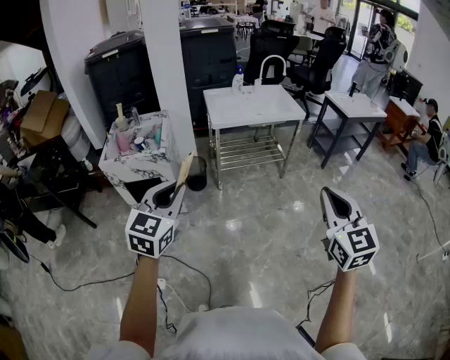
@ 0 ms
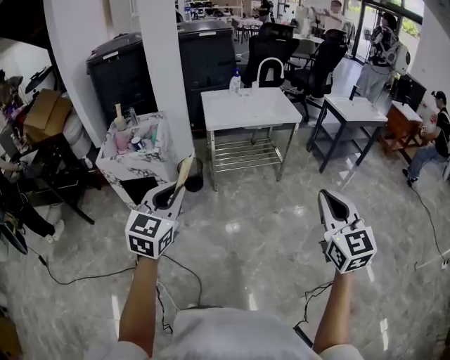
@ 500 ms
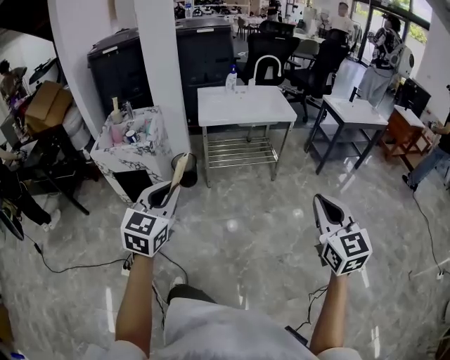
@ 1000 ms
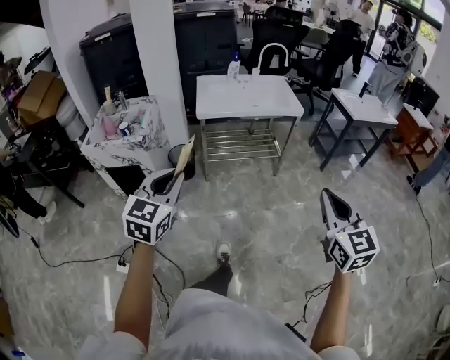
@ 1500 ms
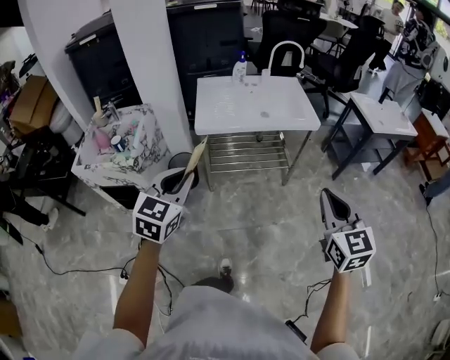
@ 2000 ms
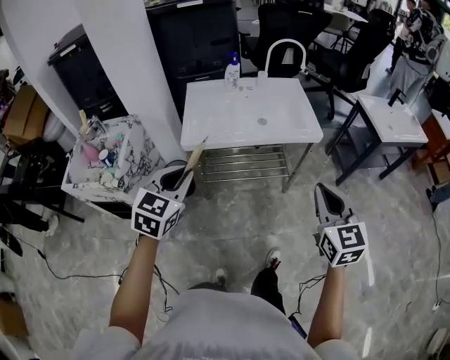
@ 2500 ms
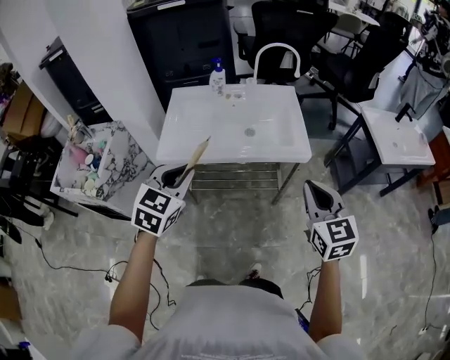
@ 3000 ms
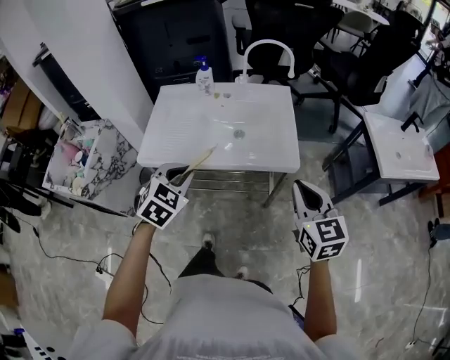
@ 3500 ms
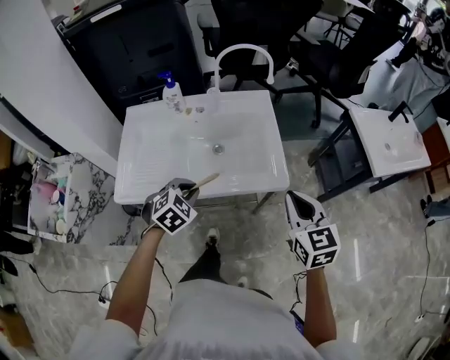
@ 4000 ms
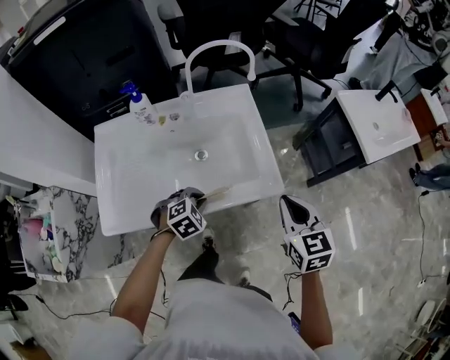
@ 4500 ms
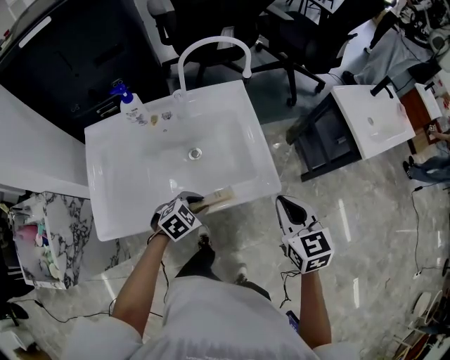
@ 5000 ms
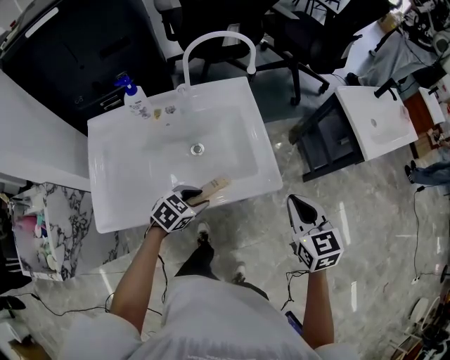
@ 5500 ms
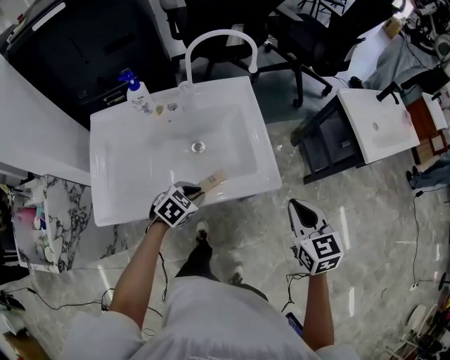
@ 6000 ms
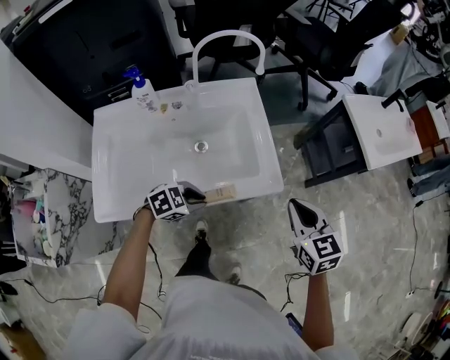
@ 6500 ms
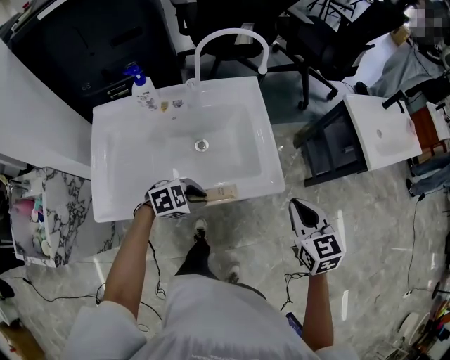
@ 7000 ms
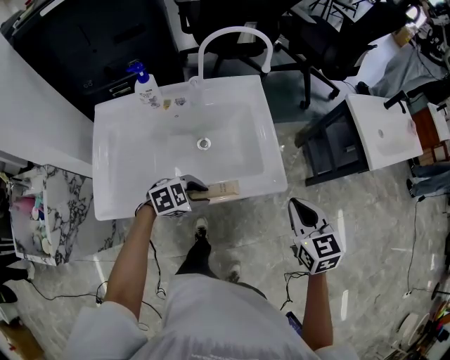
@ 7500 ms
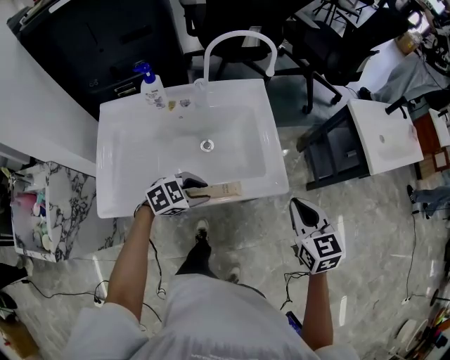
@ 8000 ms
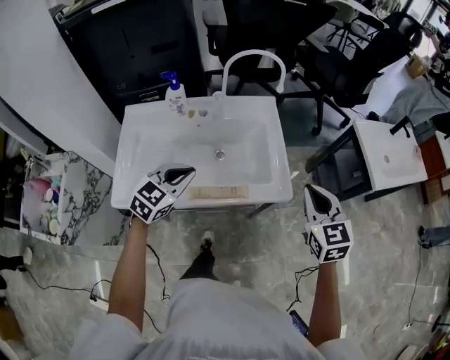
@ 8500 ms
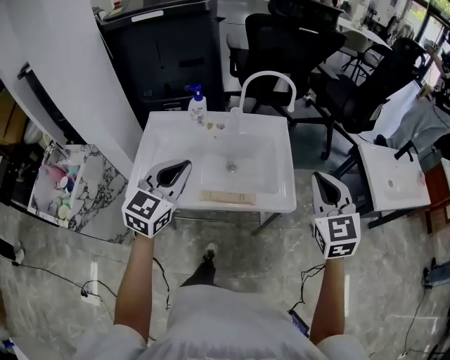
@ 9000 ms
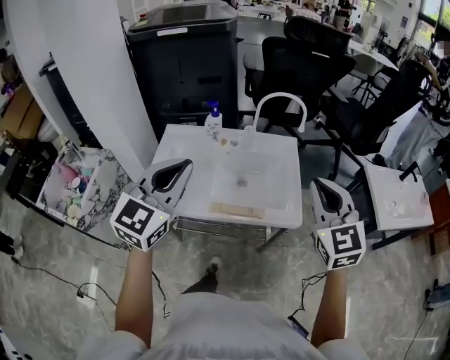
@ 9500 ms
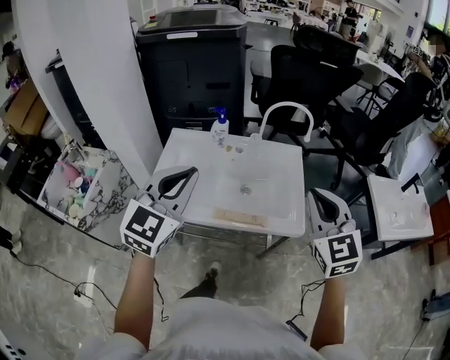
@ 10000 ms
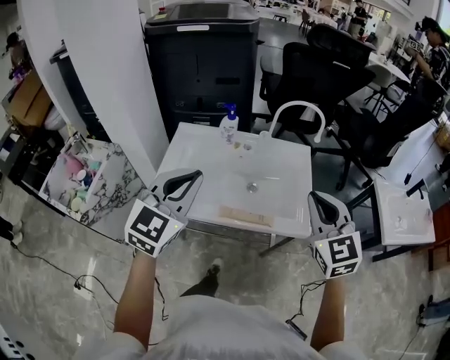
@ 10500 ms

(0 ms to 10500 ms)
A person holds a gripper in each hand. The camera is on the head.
0 ms - 2000 ms: The two grippers go some 35 cm forward and to the right.
2000 ms - 4000 ms: The pair of grippers is taken forward and to the right, about 50 cm. The left gripper goes approximately 20 cm downward, and tilts its fingers some 30 degrees downward.
4000 ms - 6500 ms: The left gripper heads downward, covering some 10 cm, turns by some 40 degrees, and opens and closes again. Meanwhile the right gripper changes place by roughly 5 cm.
6500 ms - 8500 ms: The left gripper travels upward by some 15 cm, and rotates approximately 40 degrees; the right gripper shifts some 5 cm upward.
8500 ms - 10500 ms: The right gripper travels upward and to the left by about 15 cm, and swivels approximately 20 degrees; the left gripper moves upward and backward, some 20 cm, and changes its angle by about 30 degrees.

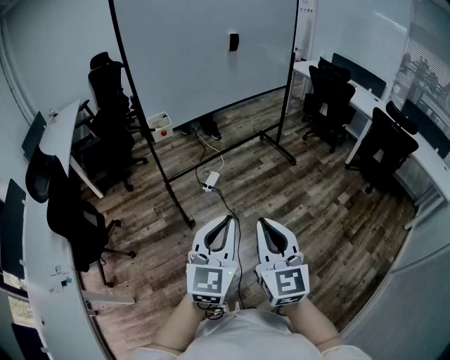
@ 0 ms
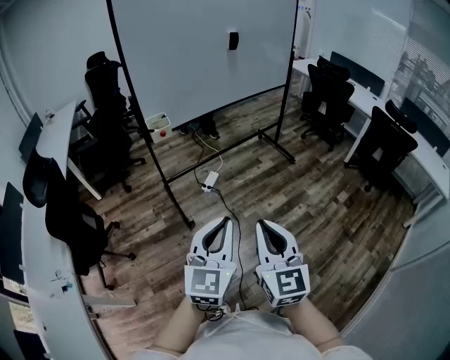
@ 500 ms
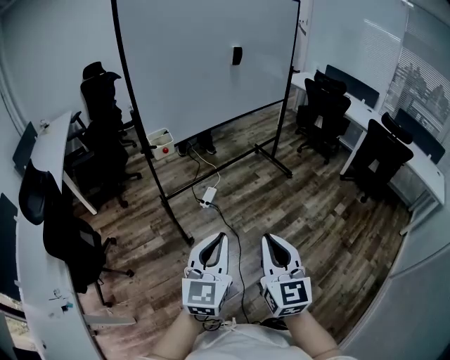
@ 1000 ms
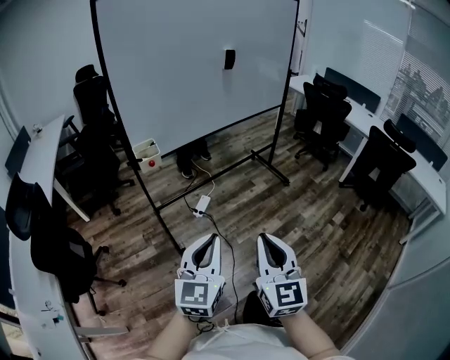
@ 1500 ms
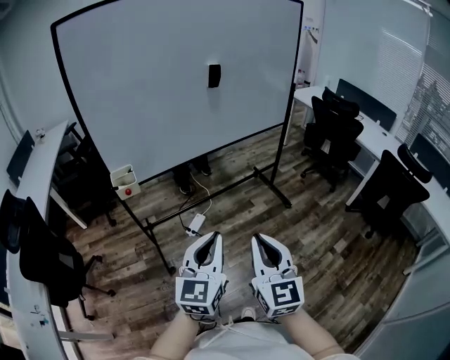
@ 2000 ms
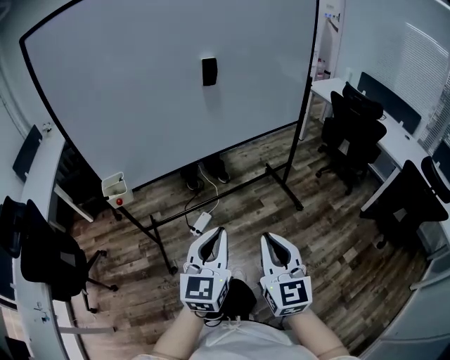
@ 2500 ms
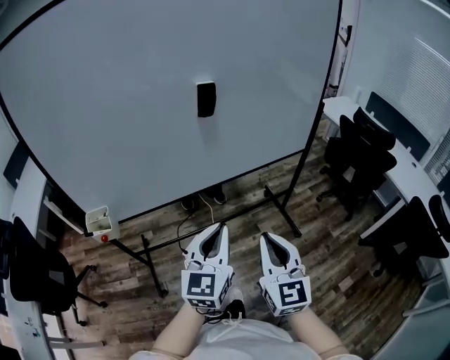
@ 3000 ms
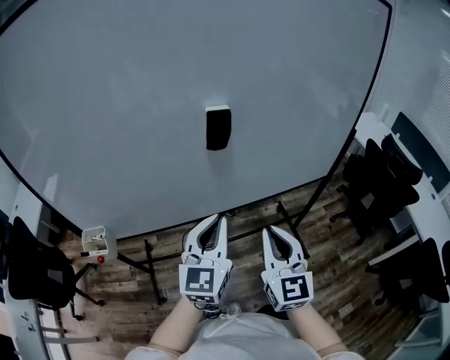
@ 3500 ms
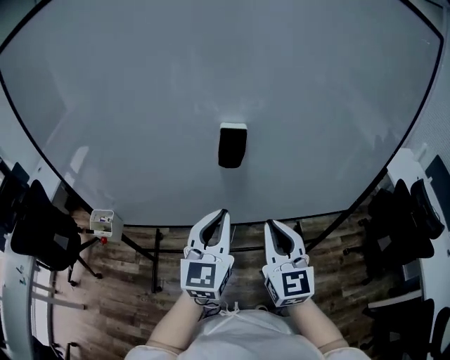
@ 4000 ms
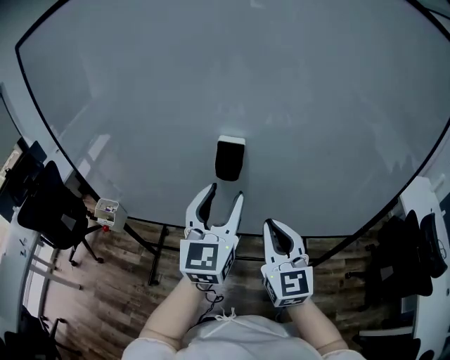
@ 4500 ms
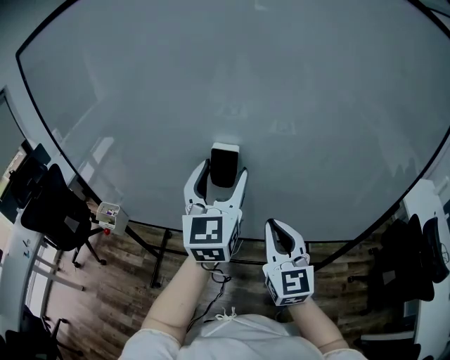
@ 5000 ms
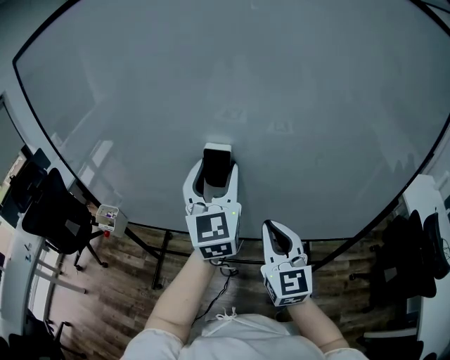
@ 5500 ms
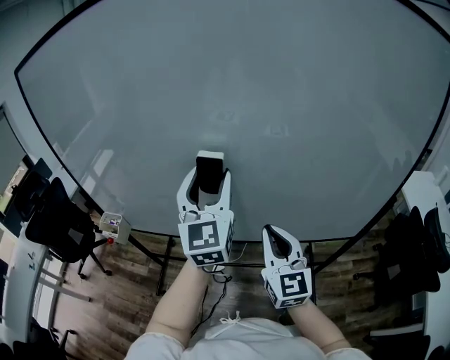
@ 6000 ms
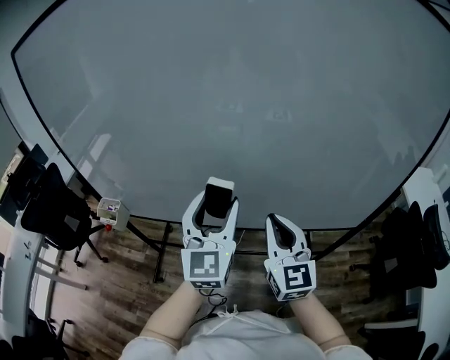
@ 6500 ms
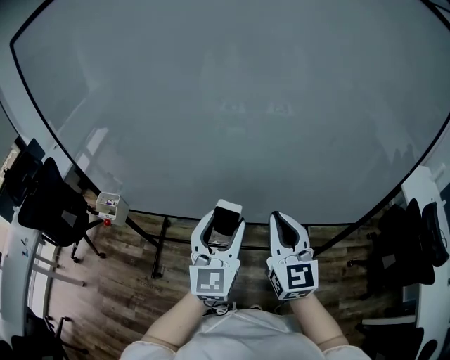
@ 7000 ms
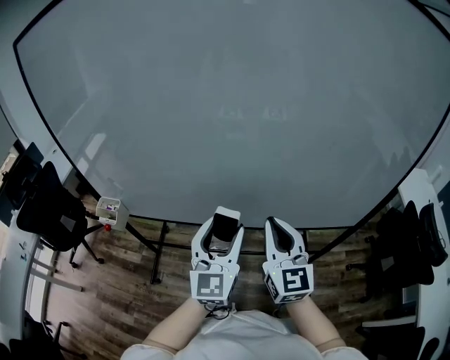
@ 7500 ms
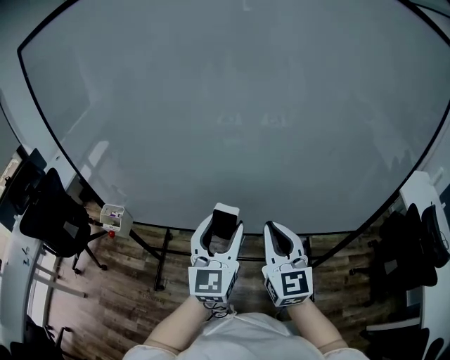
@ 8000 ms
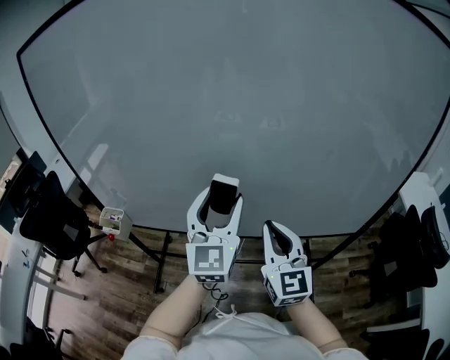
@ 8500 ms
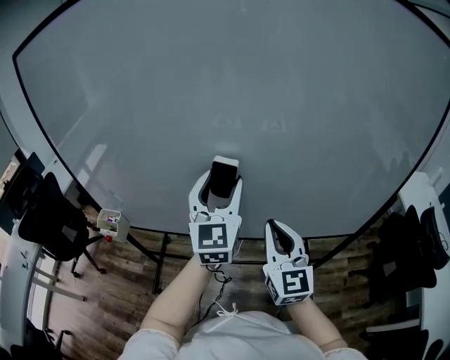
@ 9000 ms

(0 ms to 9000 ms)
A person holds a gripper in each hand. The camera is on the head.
0 ms - 2000 ms: The grippers both shift forward by some 30 cm.
2000 ms - 4500 ms: The two grippers travel together, some 60 cm. The right gripper rotates approximately 30 degrees. Meanwhile the left gripper rotates about 40 degrees, and opens its fingers.
4500 ms - 7000 ms: The left gripper goes about 10 cm downward and backward.
7000 ms - 9000 ms: The left gripper moves forward and upward, approximately 15 cm.

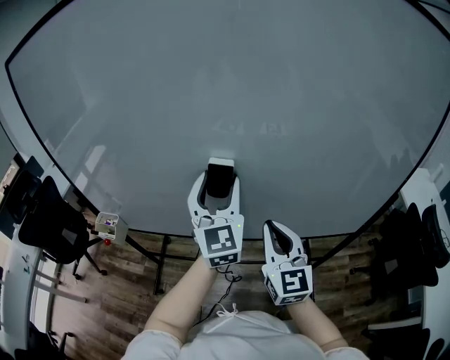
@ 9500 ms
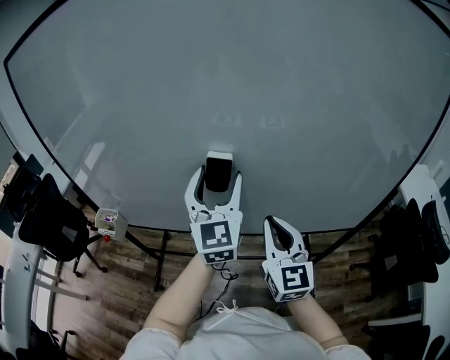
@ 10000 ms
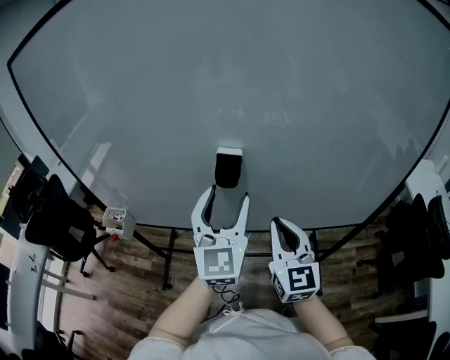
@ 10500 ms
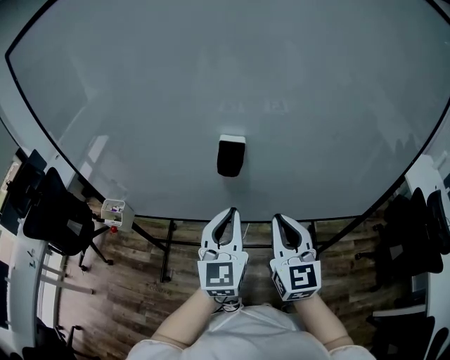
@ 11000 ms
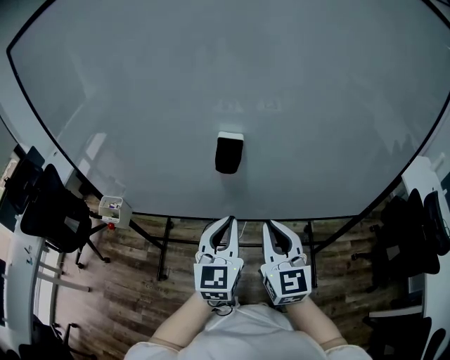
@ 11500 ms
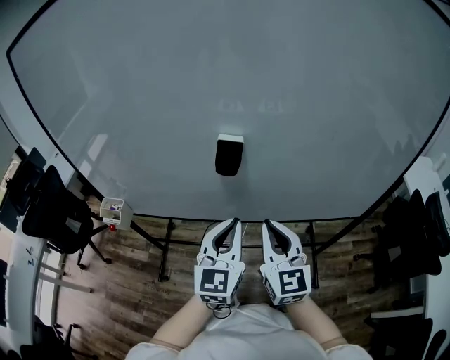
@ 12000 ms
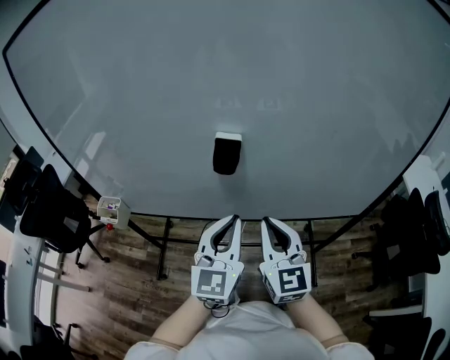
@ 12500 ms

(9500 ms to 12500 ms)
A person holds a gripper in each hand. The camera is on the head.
9500 ms - 11000 ms: The left gripper travels backward and downward by about 15 cm, and closes.
11000 ms - 12500 ms: There are only small adjustments of the grippers.

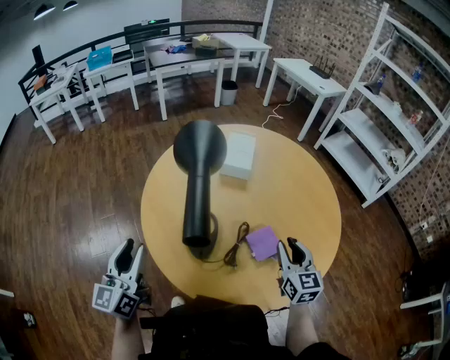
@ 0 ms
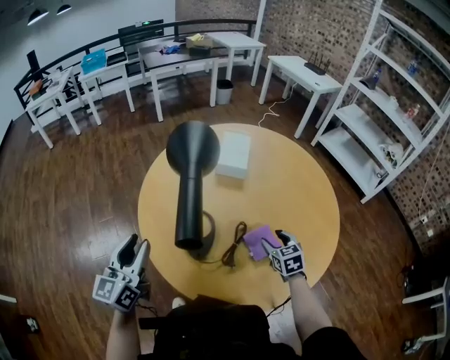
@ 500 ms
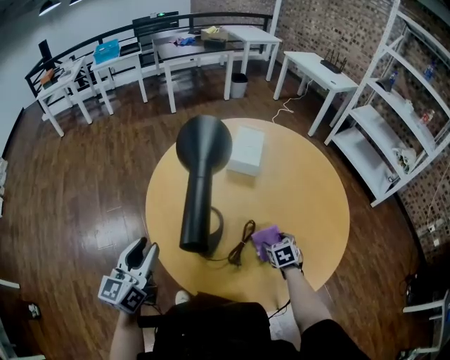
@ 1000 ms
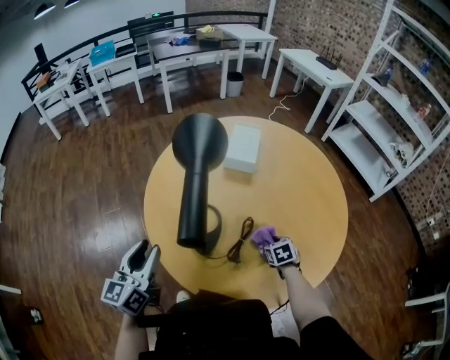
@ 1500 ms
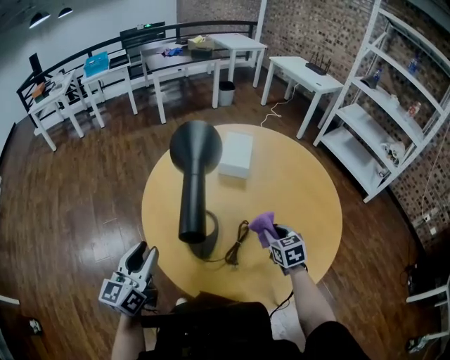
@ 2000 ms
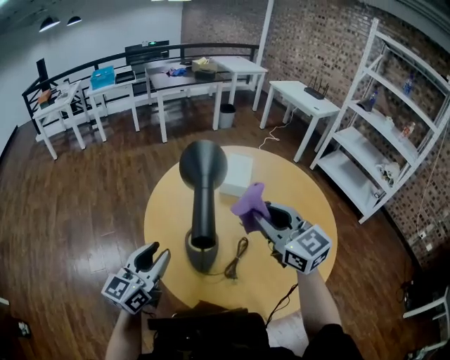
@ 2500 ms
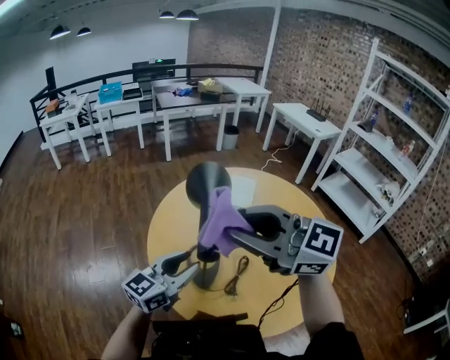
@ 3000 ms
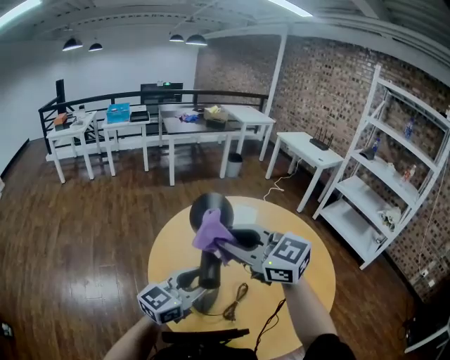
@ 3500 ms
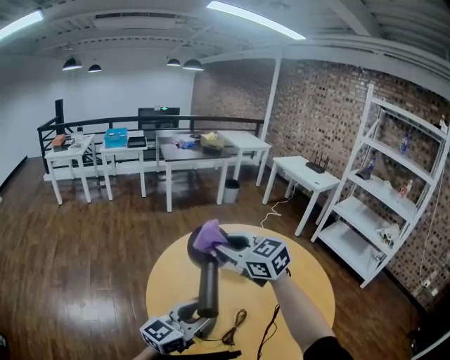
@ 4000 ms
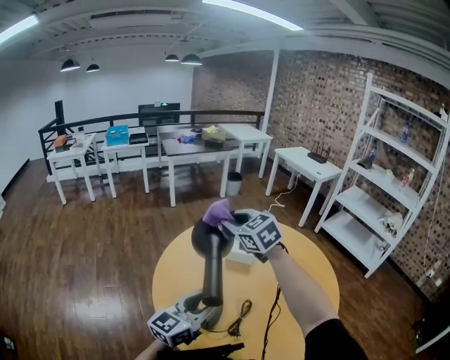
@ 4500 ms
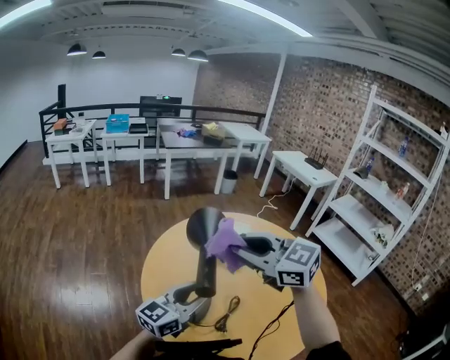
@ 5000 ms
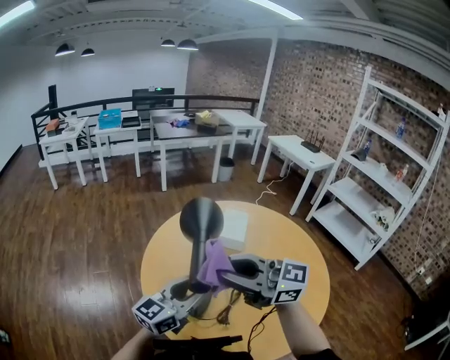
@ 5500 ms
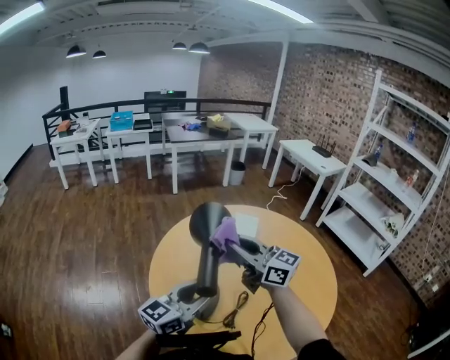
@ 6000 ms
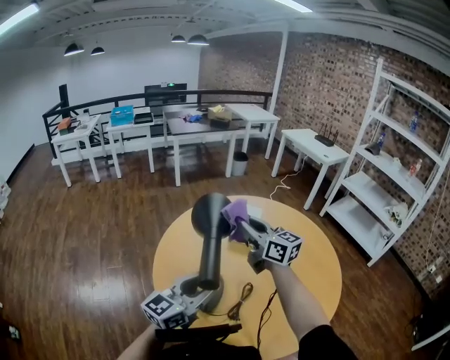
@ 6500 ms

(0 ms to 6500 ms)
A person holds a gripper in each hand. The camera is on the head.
0 ms - 2000 ms: The right gripper travels downward and forward by approximately 15 cm, swivels roughly 30 degrees, and opens, then closes again.
2000 ms - 4500 ms: The right gripper is displaced upward, forward and to the left by approximately 40 cm, and rotates approximately 40 degrees; the left gripper goes some 15 cm to the right, and rotates approximately 20 degrees.
4500 ms - 6500 ms: The right gripper goes backward and returns, roughly 25 cm each way, and swivels roughly 40 degrees.
